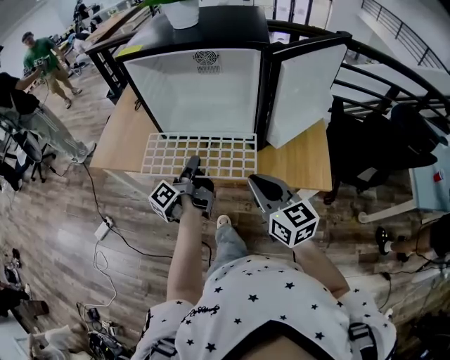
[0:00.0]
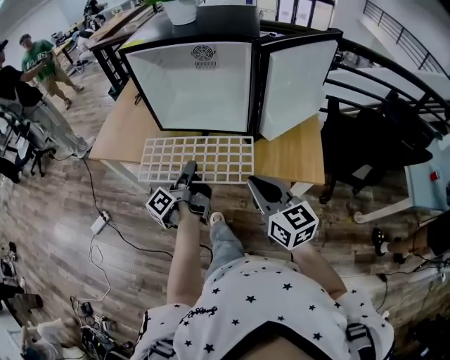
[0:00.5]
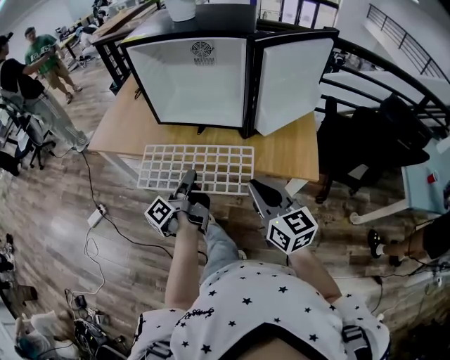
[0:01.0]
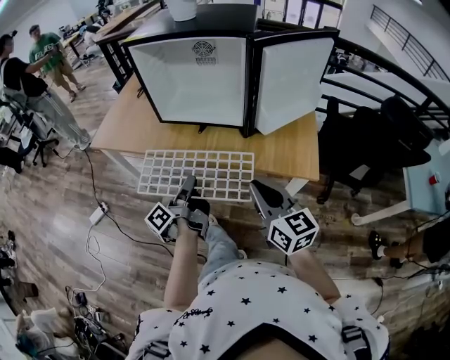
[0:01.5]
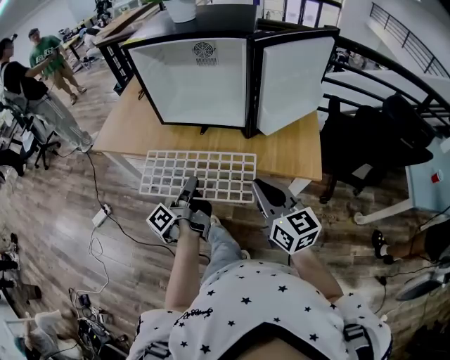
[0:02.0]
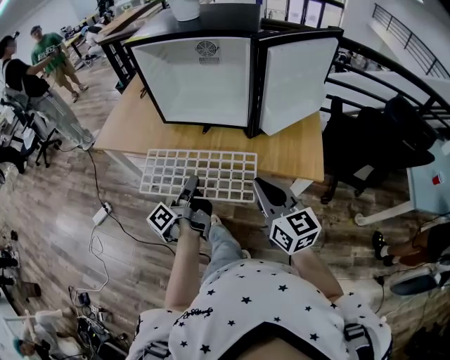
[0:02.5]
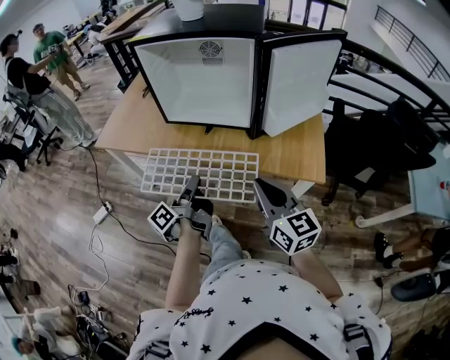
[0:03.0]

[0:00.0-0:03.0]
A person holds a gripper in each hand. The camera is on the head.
0:00.0 to 0:01.5: The grippers both shift backward by approximately 10 cm.
0:01.5 to 0:03.0: Neither gripper changes place.

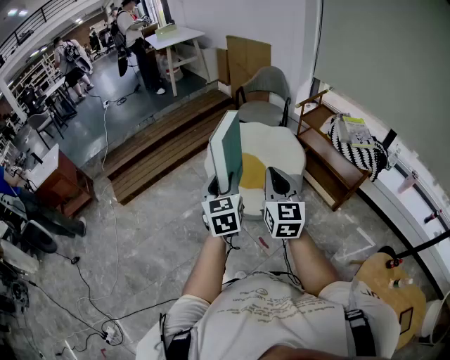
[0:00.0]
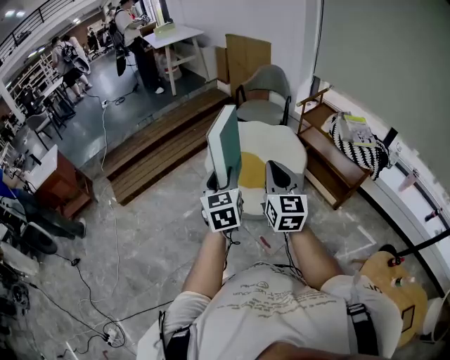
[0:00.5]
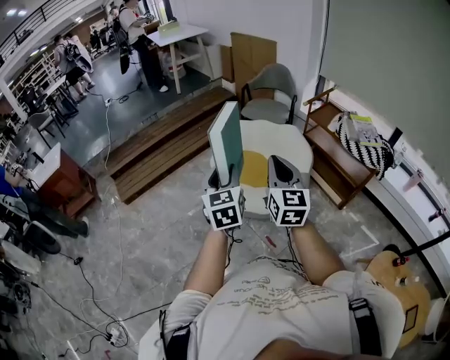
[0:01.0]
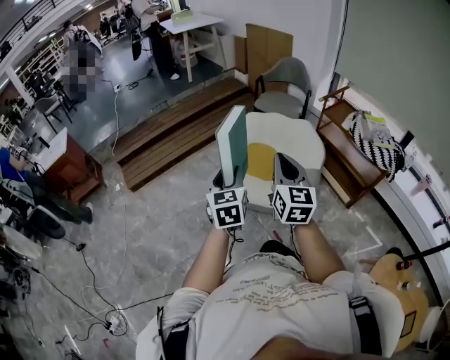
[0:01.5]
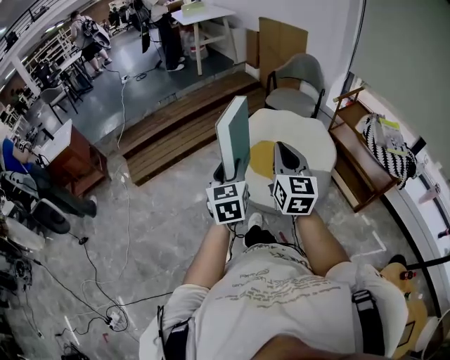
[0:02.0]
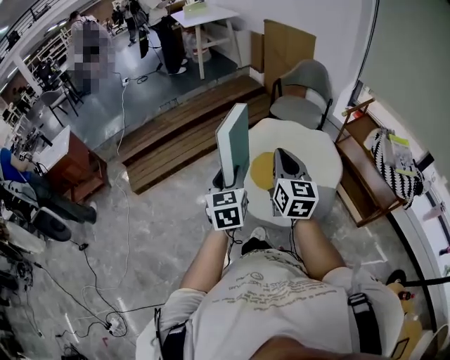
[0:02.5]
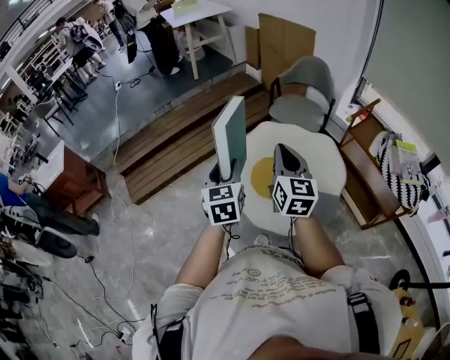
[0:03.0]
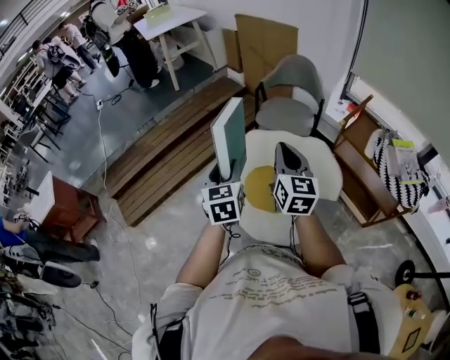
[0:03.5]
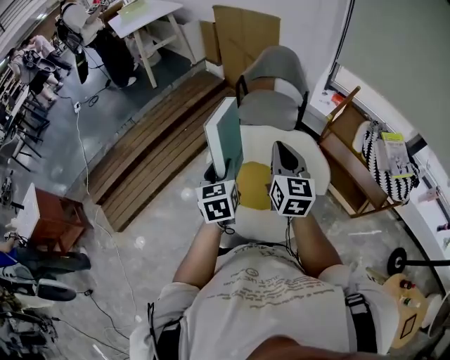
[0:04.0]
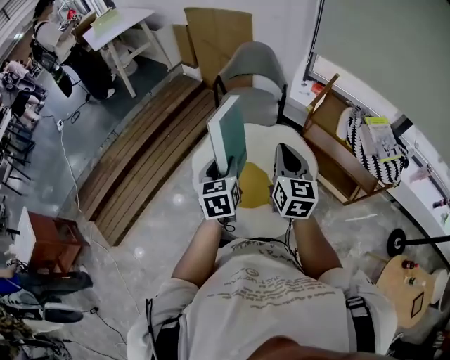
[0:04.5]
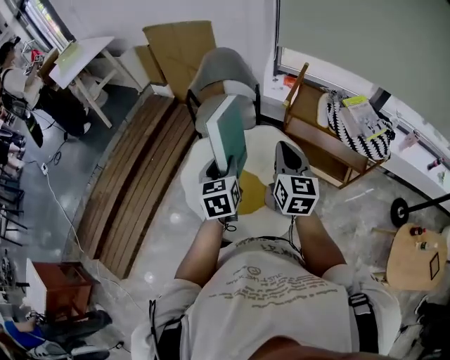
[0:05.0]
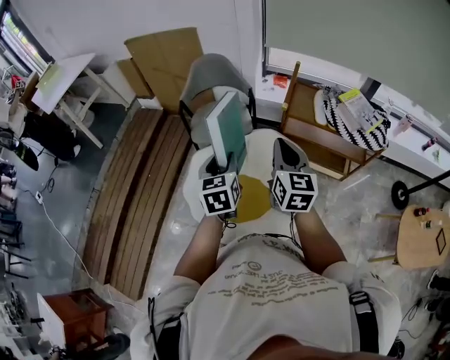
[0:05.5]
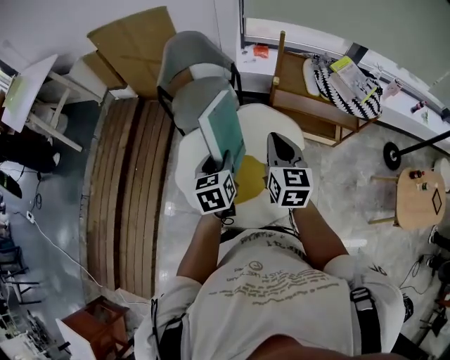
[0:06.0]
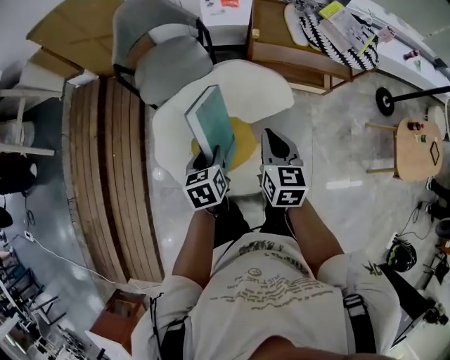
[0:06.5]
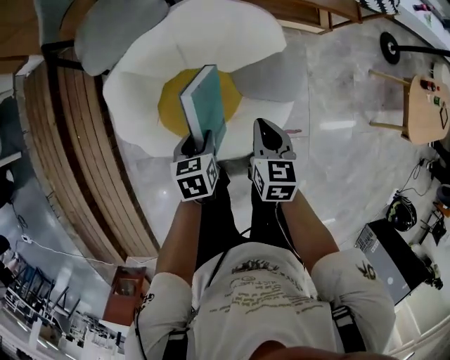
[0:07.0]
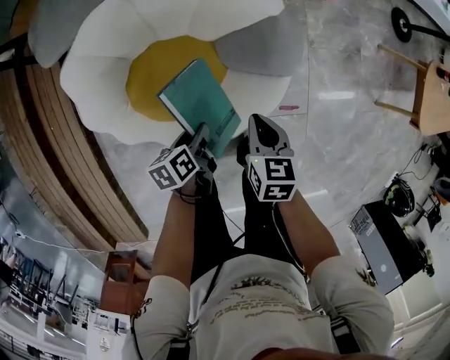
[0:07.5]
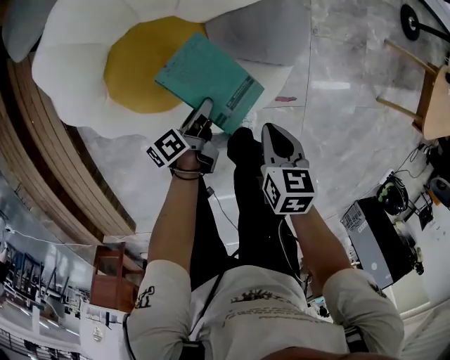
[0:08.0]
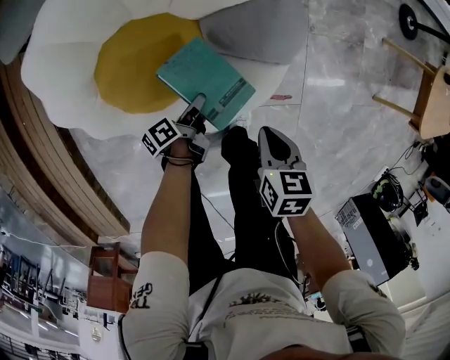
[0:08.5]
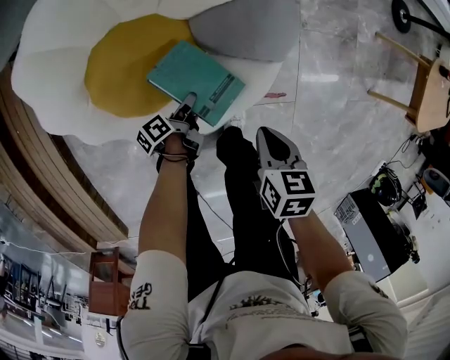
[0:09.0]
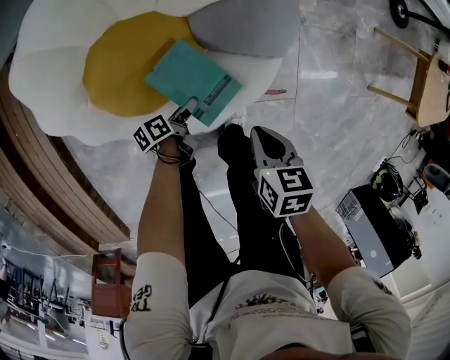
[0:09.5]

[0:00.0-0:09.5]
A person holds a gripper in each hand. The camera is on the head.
0:00.0 to 0:02.0: The right gripper moves forward and to the left, approximately 15 cm. Meanwhile the left gripper goes approximately 15 cm to the left and forward.
0:02.0 to 0:04.0: Both grippers travel together forward, approximately 40 cm.
0:04.0 to 0:05.5: The left gripper shifts by about 15 cm, and swivels approximately 30 degrees, while the right gripper moves approximately 10 cm, and rotates some 30 degrees.
0:05.5 to 0:07.5: The grippers both shift downward by approximately 50 cm. The right gripper tips its fingers downward by some 40 degrees, while the left gripper rotates some 60 degrees.
0:07.5 to 0:09.5: The right gripper goes some 10 cm downward, backward and to the right; the left gripper heads downward, covering approximately 20 cm, swivels approximately 30 degrees, and opens its fingers.

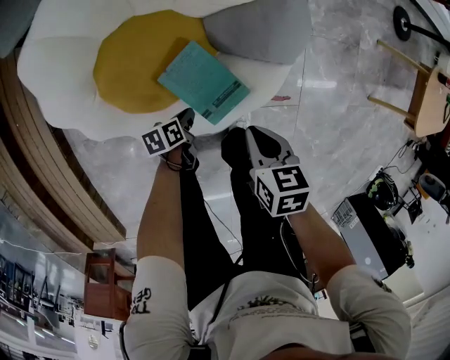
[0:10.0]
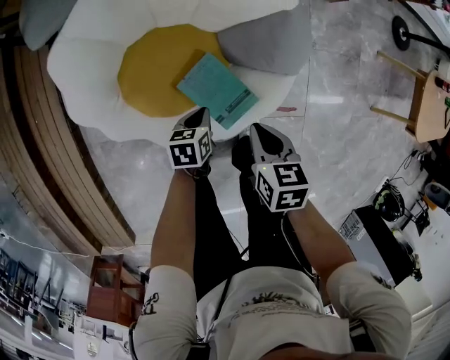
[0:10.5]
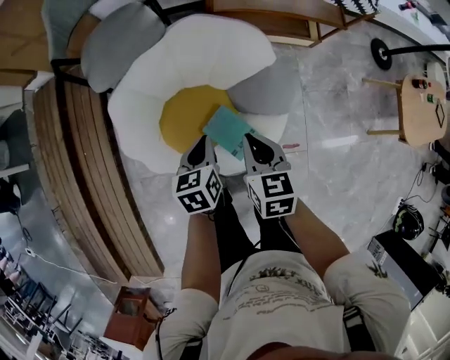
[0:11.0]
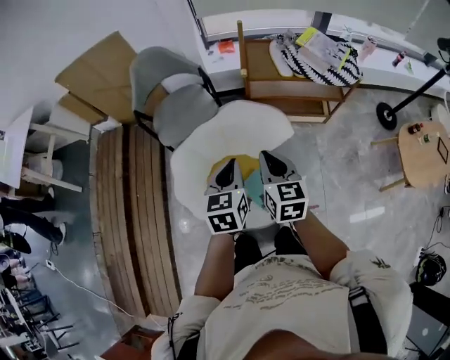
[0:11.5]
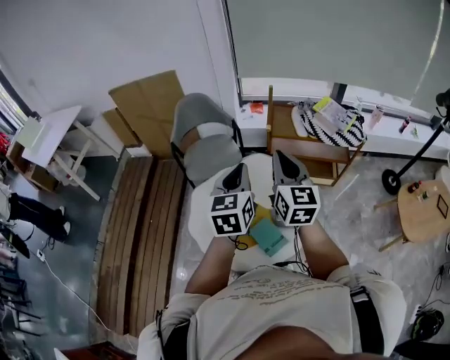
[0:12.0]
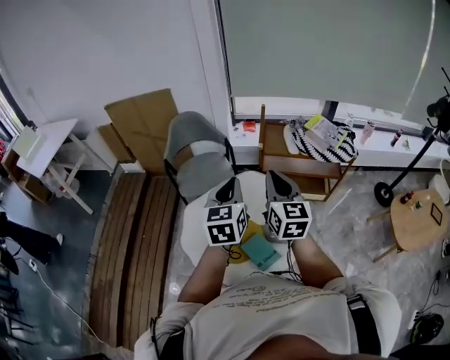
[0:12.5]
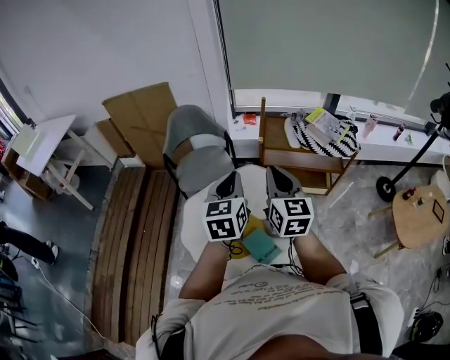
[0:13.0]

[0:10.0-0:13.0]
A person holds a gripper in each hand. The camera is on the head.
0:10.0 to 0:11.5: The grippers both shift upward by approximately 60 cm. The left gripper rotates about 60 degrees. The right gripper points its fingers roughly 40 degrees further upward.
0:11.5 to 0:13.0: The grippers both shift upward by approximately 15 cm.

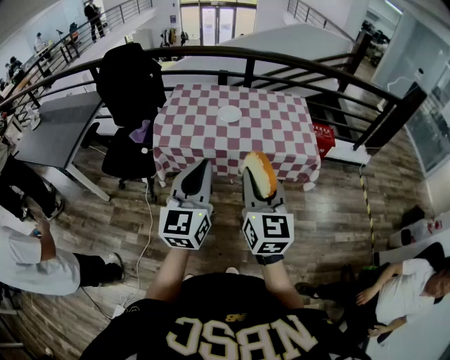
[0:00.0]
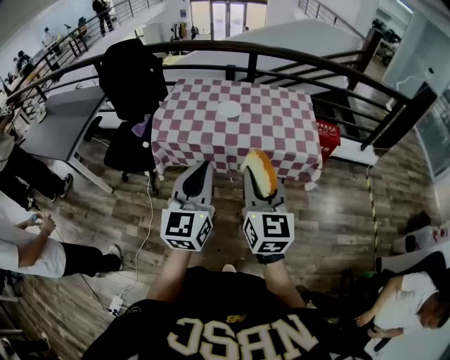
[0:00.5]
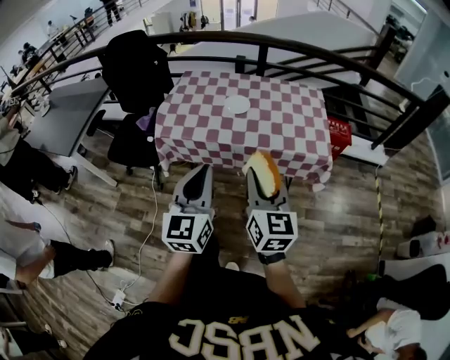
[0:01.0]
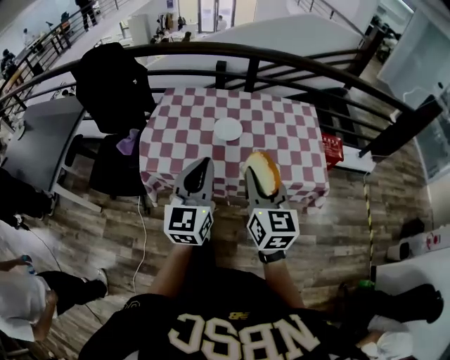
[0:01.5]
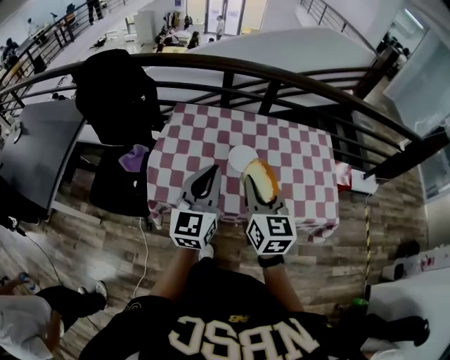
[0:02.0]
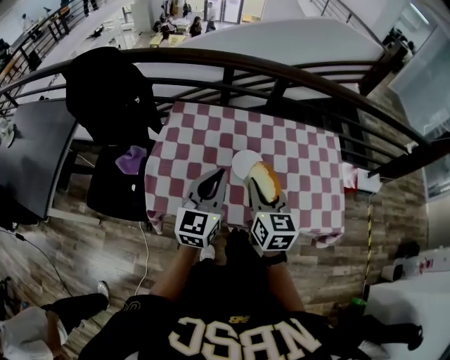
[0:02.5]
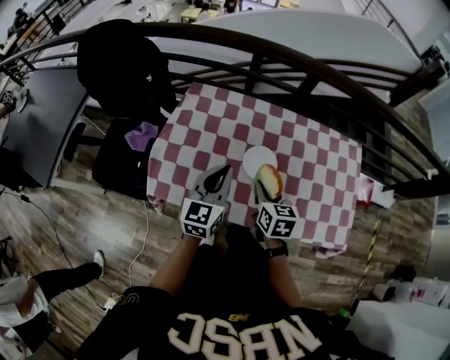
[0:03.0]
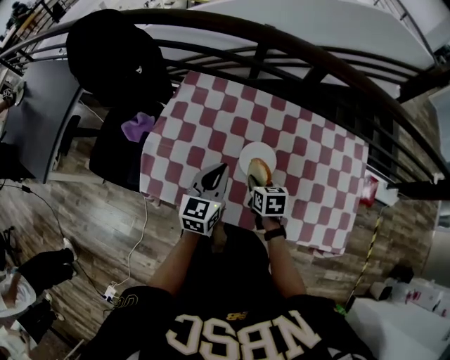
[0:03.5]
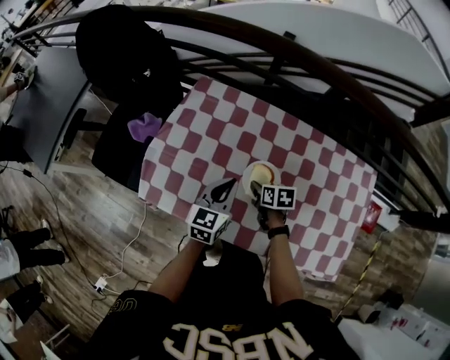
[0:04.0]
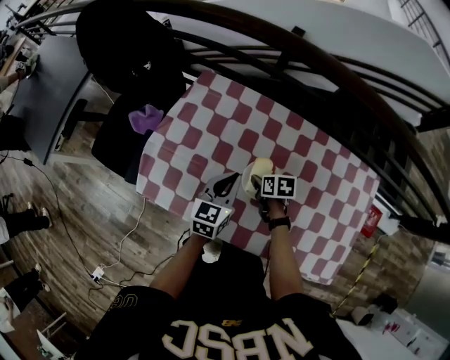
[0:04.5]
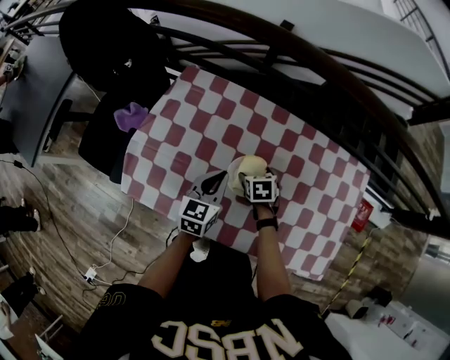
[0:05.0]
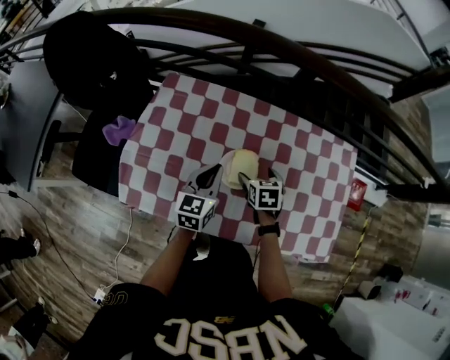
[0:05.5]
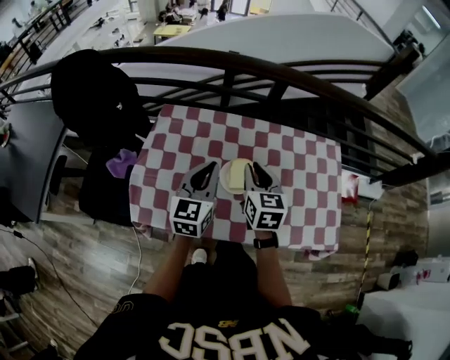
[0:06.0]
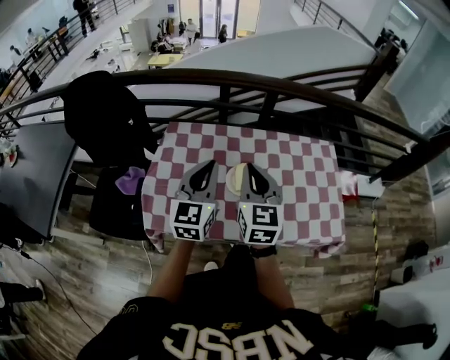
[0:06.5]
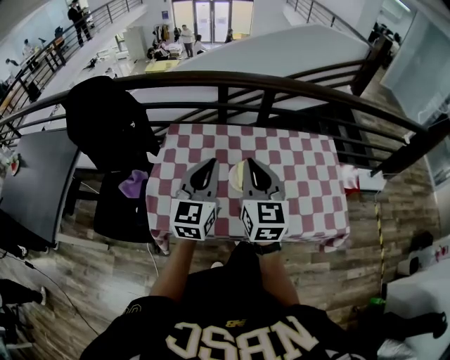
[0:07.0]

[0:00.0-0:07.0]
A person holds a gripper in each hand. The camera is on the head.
0:00.0 to 0:02.0: Both grippers travel together forward, approximately 40 cm.
0:02.0 to 0:03.5: Both grippers travel together downward and forward, approximately 30 cm. The left gripper rotates roughly 20 degrees. Meanwhile the right gripper tips its fingers downward by some 40 degrees.
0:03.5 to 0:05.0: The right gripper travels forward, downward and to the right by approximately 15 cm, and opens its fingers; the left gripper is displaced downward by some 5 cm.
0:05.0 to 0:07.0: The left gripper travels upward by about 25 cm, and rotates approximately 30 degrees; the right gripper moves upward, some 40 cm, tilts its fingers some 60 degrees upward, and closes up.

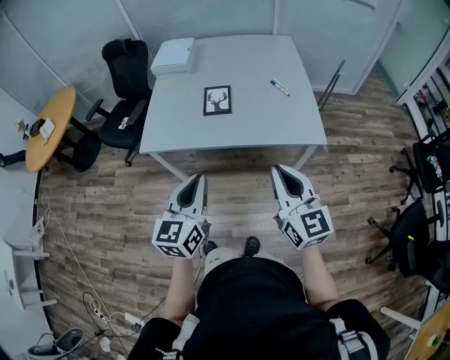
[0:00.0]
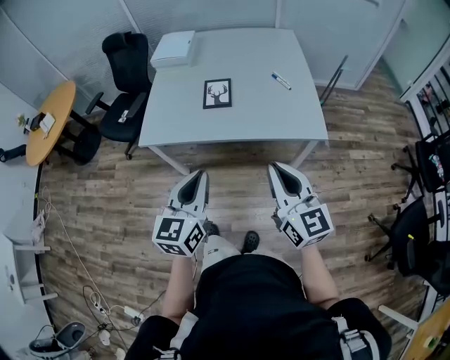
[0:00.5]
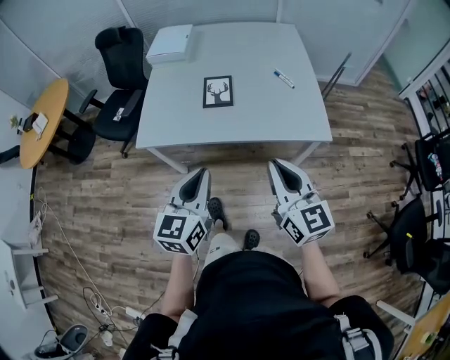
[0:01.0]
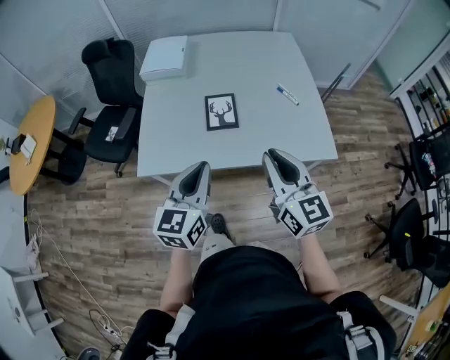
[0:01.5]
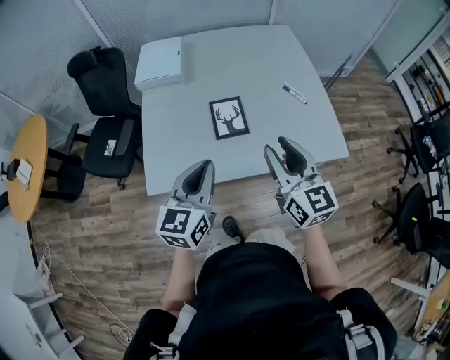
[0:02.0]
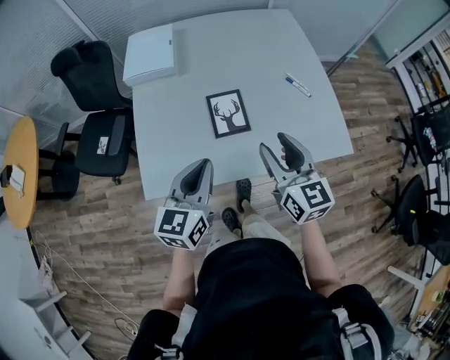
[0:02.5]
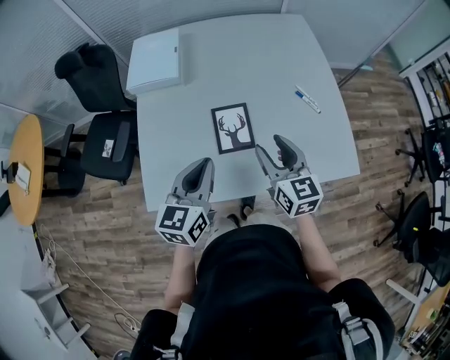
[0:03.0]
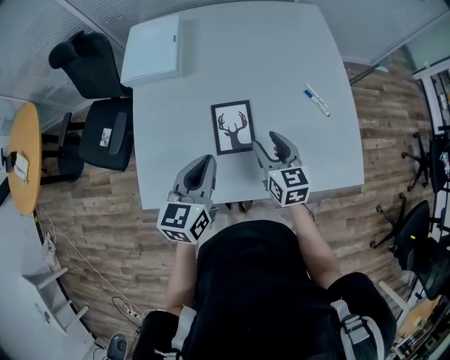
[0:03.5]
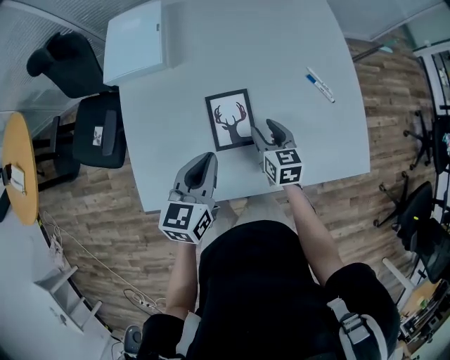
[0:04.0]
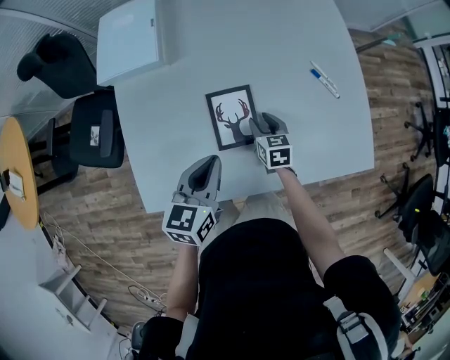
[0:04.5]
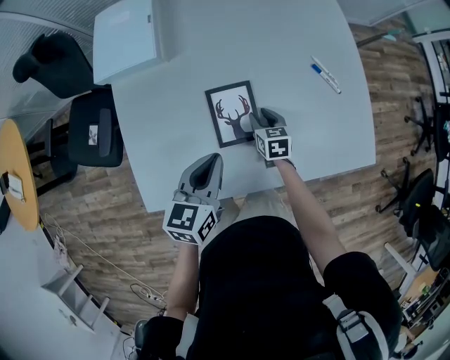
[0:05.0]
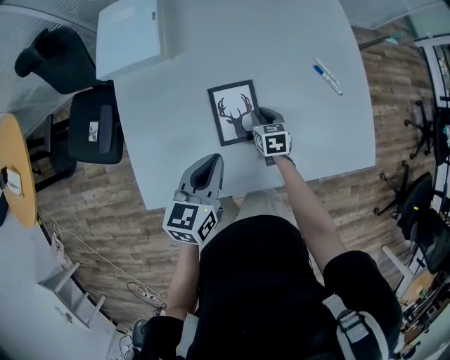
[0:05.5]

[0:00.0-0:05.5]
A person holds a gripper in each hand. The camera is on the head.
0:00.0 to 0:02.0: Both grippers move forward and to the left, about 35 cm. The right gripper opens.
0:02.0 to 0:03.5: Both grippers move forward and downward, some 25 cm. The right gripper turns by roughly 20 degrees.
0:03.5 to 0:05.5: The left gripper goes roughly 10 cm downward. Meanwhile the right gripper travels downward by roughly 20 cm, swivels roughly 30 degrees, and closes up.
